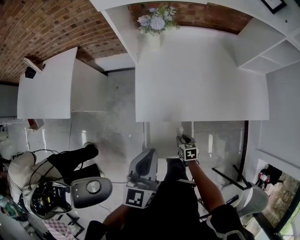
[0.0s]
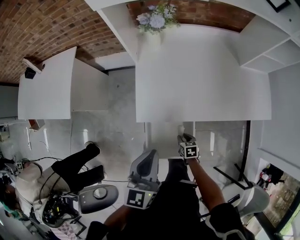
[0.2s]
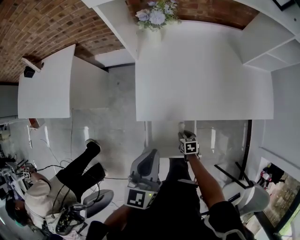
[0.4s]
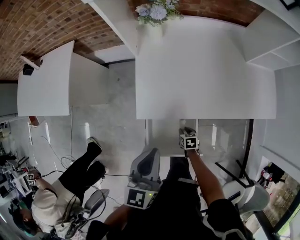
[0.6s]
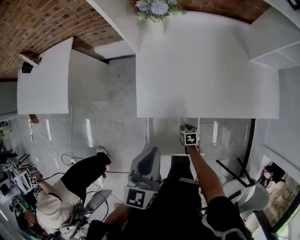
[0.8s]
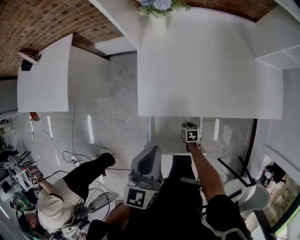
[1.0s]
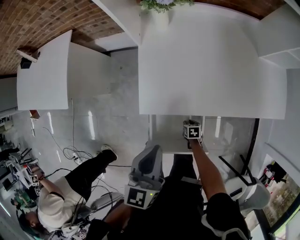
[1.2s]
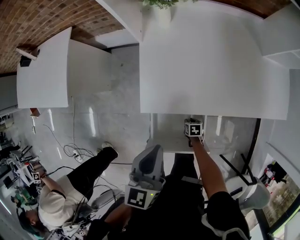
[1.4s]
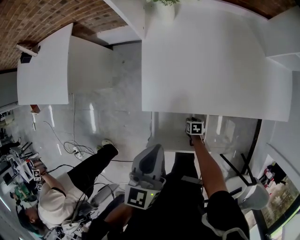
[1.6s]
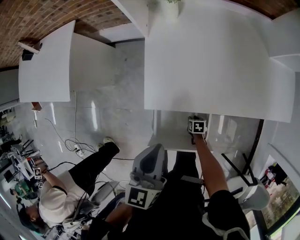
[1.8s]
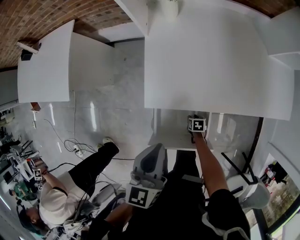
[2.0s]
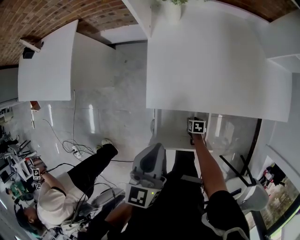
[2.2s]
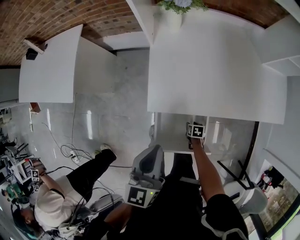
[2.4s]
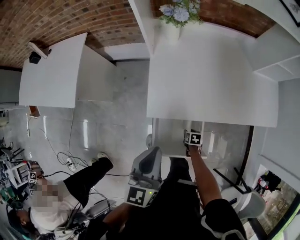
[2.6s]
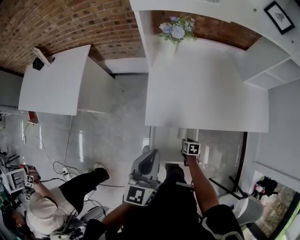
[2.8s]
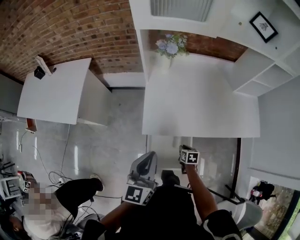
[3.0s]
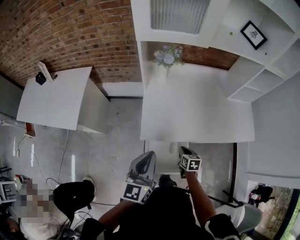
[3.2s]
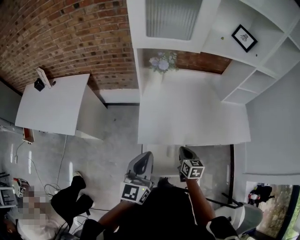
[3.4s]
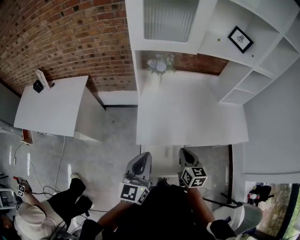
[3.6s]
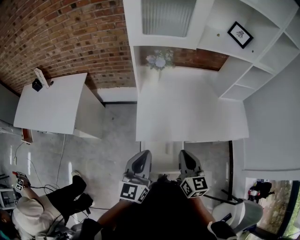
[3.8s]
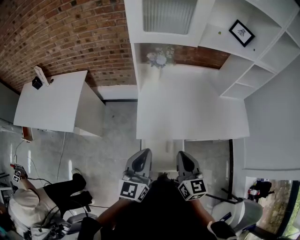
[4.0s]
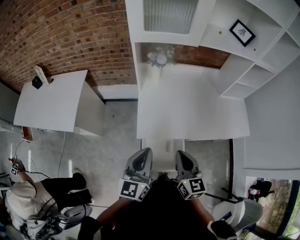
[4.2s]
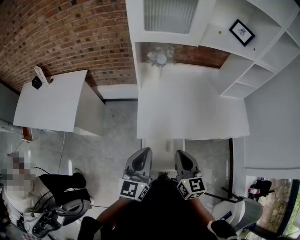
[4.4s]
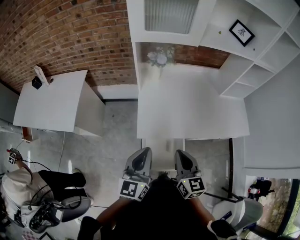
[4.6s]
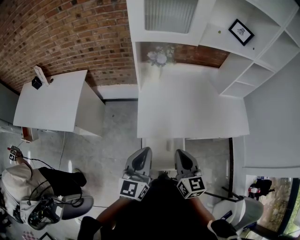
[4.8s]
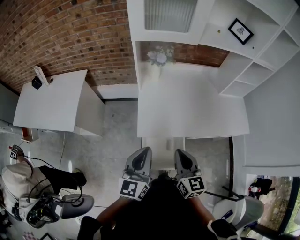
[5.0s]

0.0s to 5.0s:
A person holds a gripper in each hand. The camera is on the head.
0.0s to 1.6s: The left gripper travels downward by roughly 10 cm; the right gripper shifts some 20 cm downward.
1.6s to 3.4s: The left gripper is displaced upward, backward and to the left by approximately 15 cm. Meanwhile the right gripper heads upward, covering approximately 40 cm, angles its fingers upward, by roughly 40 degrees, and closes.
3.4s to 5.0s: The right gripper shifts roughly 20 cm upward and backward, and swivels some 20 degrees.

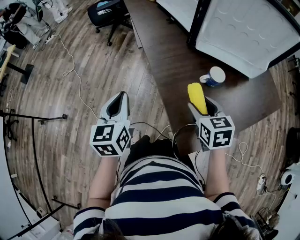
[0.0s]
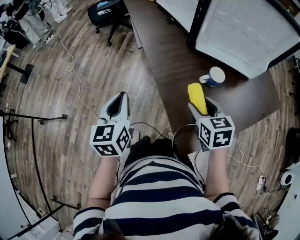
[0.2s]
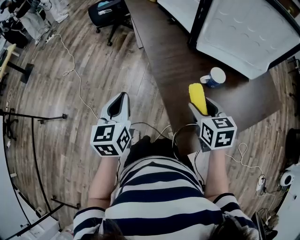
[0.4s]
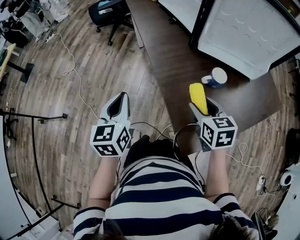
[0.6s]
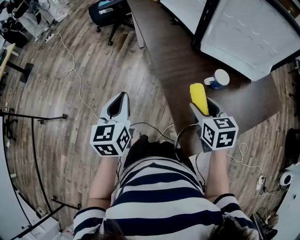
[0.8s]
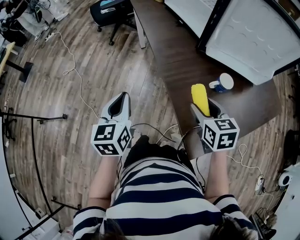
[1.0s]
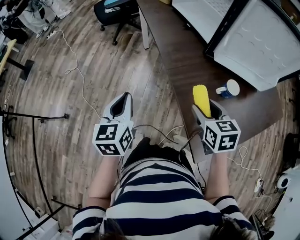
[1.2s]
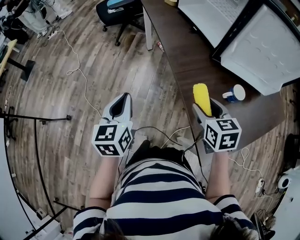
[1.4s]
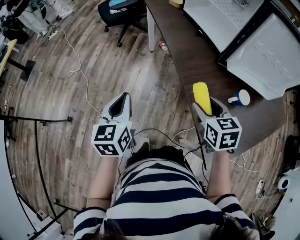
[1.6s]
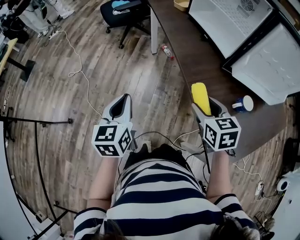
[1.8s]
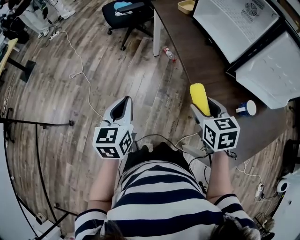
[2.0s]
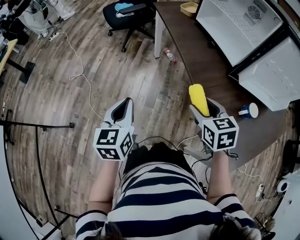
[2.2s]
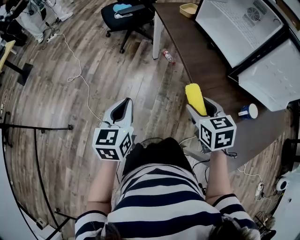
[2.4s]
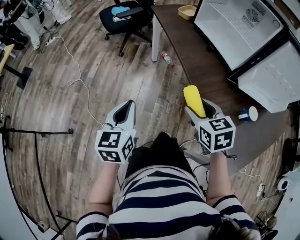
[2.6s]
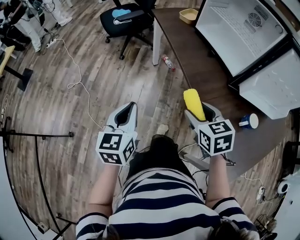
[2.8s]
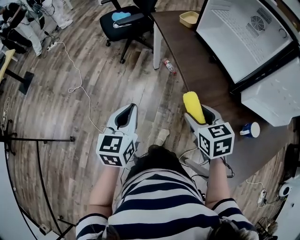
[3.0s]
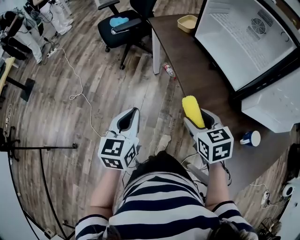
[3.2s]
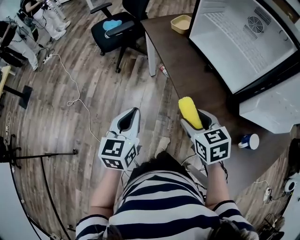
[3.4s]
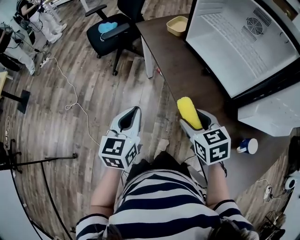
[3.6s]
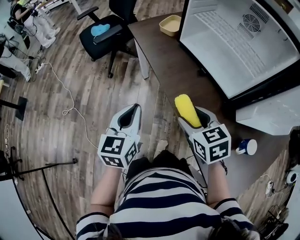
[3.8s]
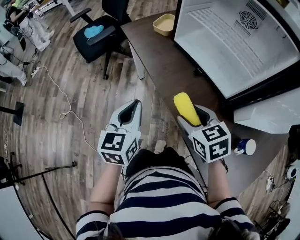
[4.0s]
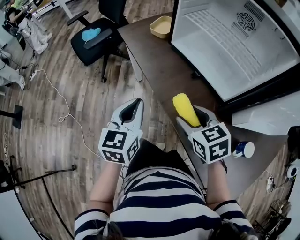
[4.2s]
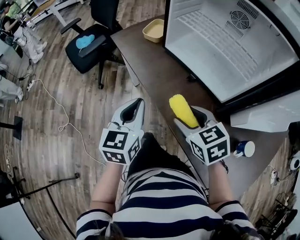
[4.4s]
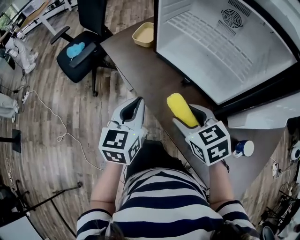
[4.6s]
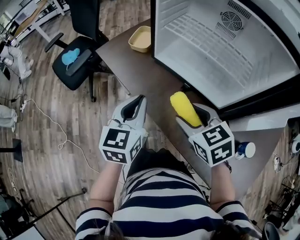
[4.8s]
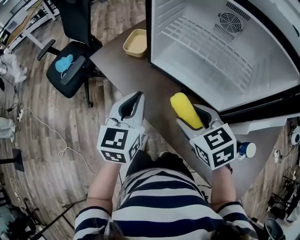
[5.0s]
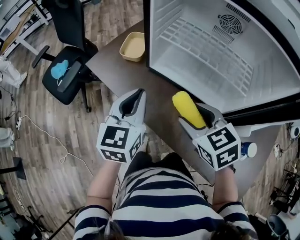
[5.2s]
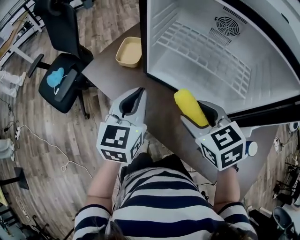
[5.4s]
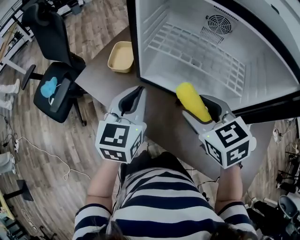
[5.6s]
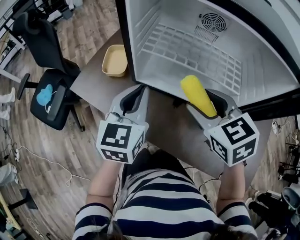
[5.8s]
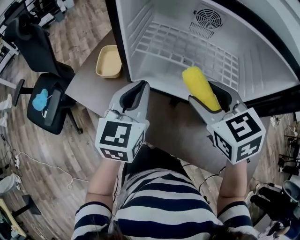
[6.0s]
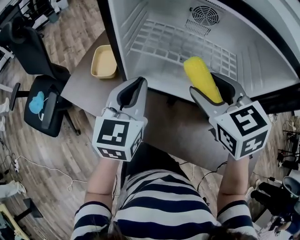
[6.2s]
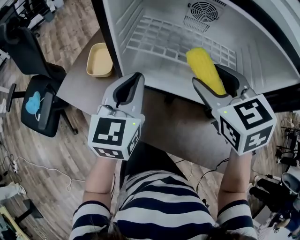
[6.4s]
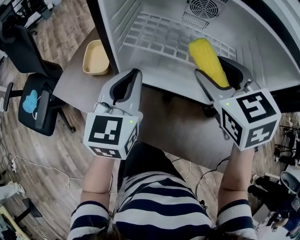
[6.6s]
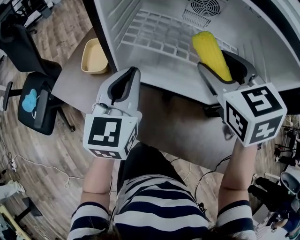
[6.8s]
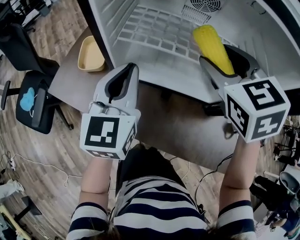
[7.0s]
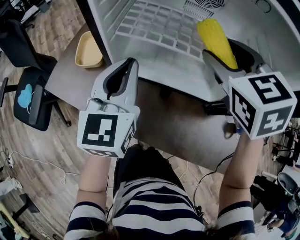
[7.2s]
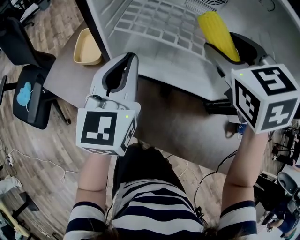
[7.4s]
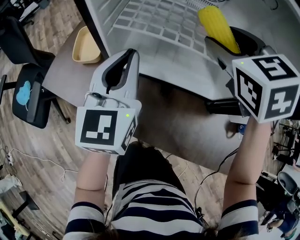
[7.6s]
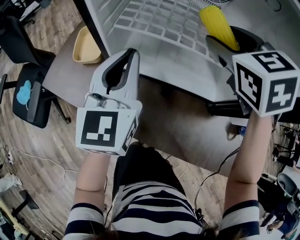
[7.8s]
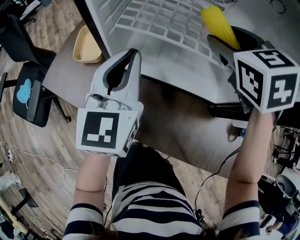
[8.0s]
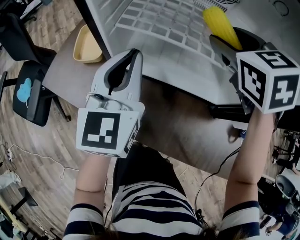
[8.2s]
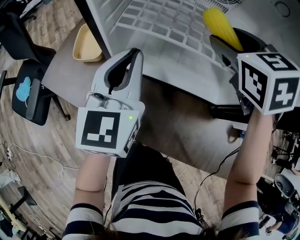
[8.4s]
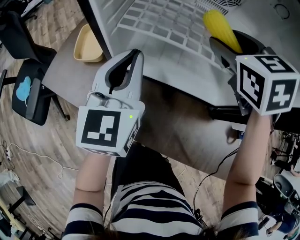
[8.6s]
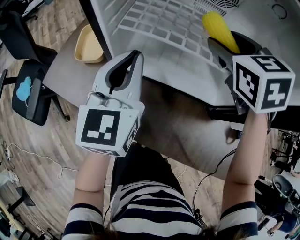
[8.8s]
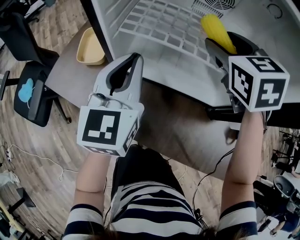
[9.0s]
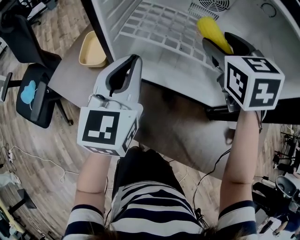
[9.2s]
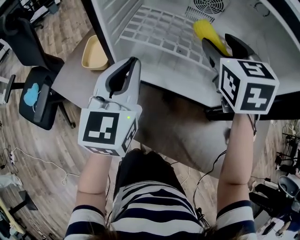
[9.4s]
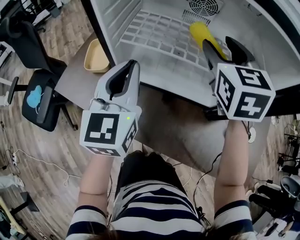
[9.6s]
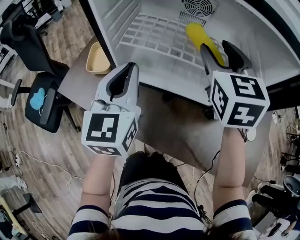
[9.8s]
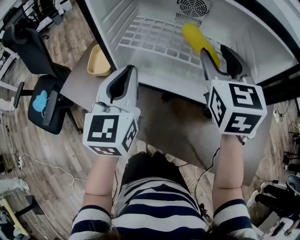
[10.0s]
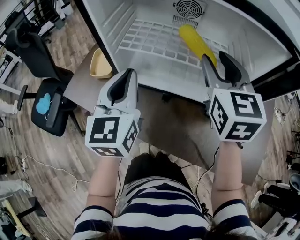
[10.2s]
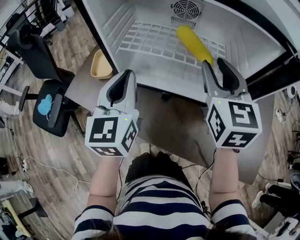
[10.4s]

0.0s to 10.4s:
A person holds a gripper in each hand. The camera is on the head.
0.0s to 1.4s: Both grippers travel together to the left and forward, approximately 15 cm.
1.4s to 3.0s: The two grippers go about 20 cm forward and to the left.
3.0s to 4.4s: The left gripper goes roughly 30 cm forward and to the right, while the right gripper heads forward, covering about 20 cm.
4.4s to 6.0s: The right gripper shifts by some 25 cm, and rotates roughly 30 degrees, while the left gripper shifts by approximately 25 cm, and changes its angle by about 30 degrees.
6.0s to 7.4s: The right gripper travels forward by roughly 10 cm.
7.4s to 9.0s: The right gripper shifts by some 5 cm.
9.0s to 10.4s: The left gripper heads backward and upward, covering roughly 10 cm. Meanwhile the right gripper is displaced backward and upward by about 15 cm, swivels some 30 degrees, and closes up.

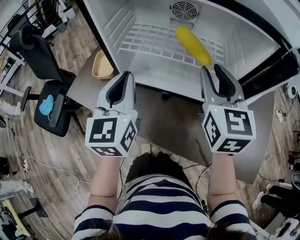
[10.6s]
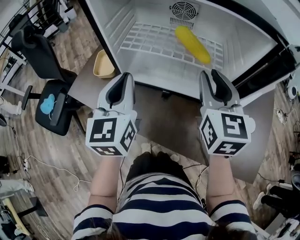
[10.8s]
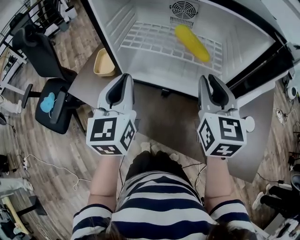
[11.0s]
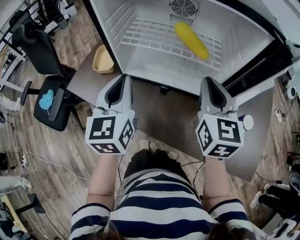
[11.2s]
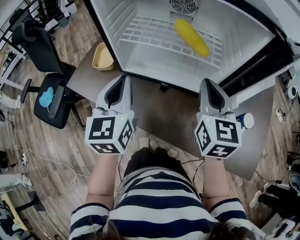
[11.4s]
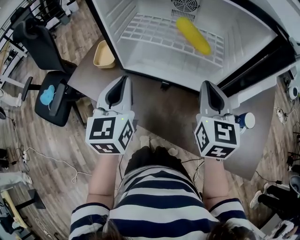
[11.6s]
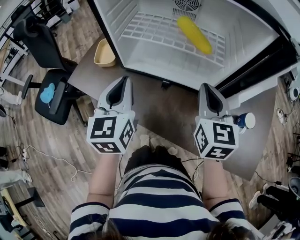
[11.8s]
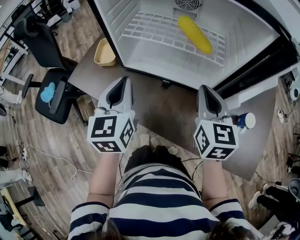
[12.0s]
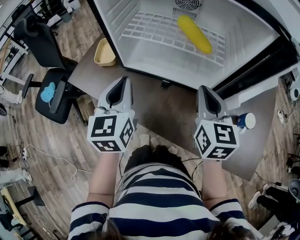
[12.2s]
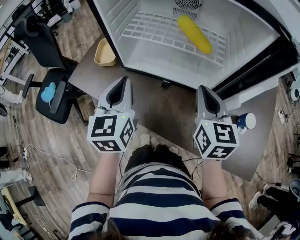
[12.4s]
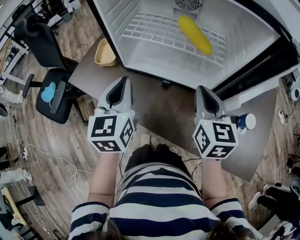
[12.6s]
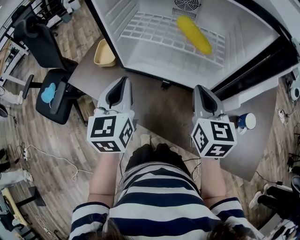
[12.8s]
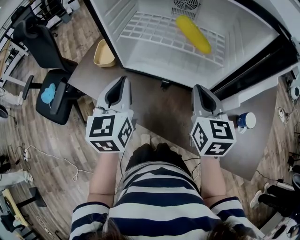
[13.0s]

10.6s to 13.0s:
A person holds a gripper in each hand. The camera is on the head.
10.6s to 11.8s: The right gripper shifts roughly 10 cm downward and backward, and closes up. Meanwhile the left gripper shifts by approximately 5 cm.
11.8s to 13.0s: The grippers stay close to where they were, moving slightly.

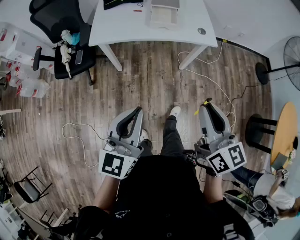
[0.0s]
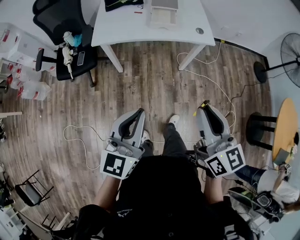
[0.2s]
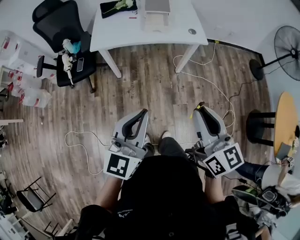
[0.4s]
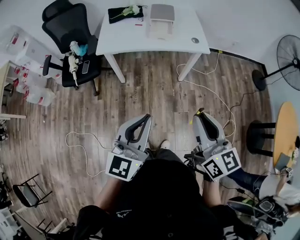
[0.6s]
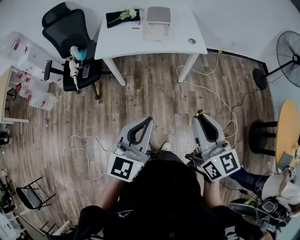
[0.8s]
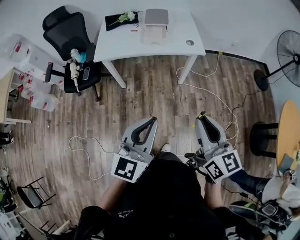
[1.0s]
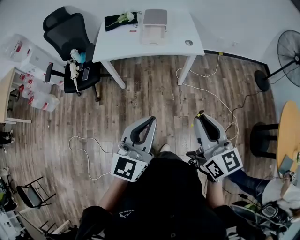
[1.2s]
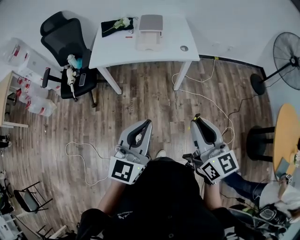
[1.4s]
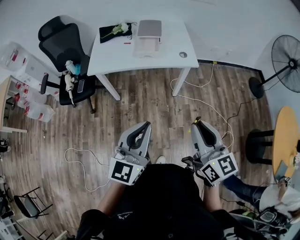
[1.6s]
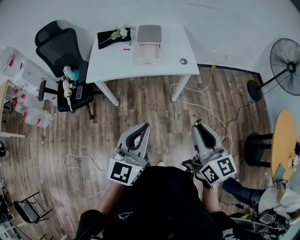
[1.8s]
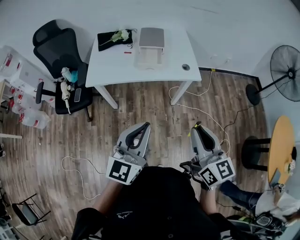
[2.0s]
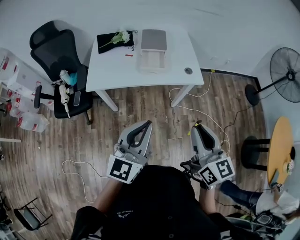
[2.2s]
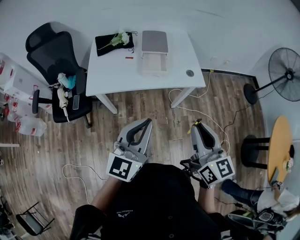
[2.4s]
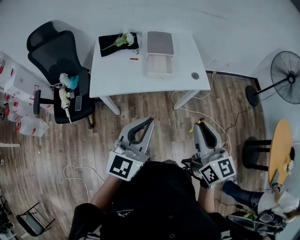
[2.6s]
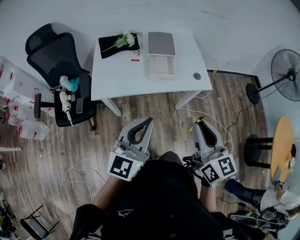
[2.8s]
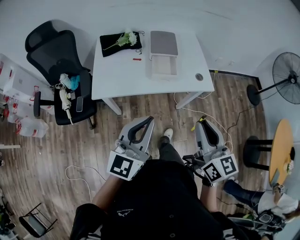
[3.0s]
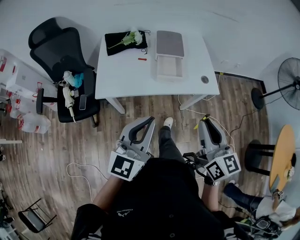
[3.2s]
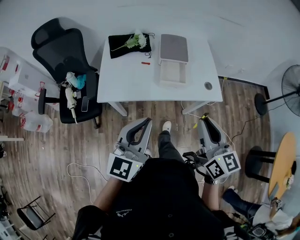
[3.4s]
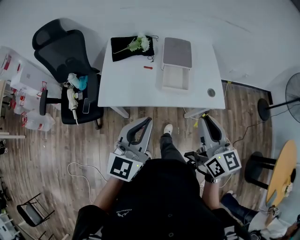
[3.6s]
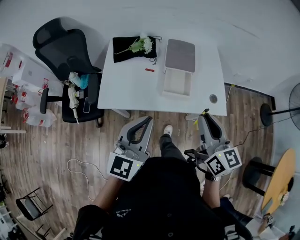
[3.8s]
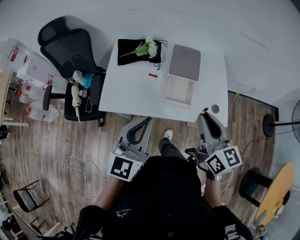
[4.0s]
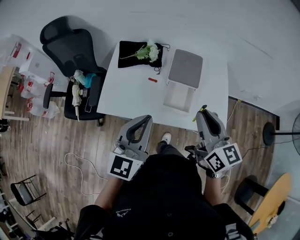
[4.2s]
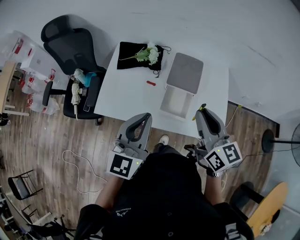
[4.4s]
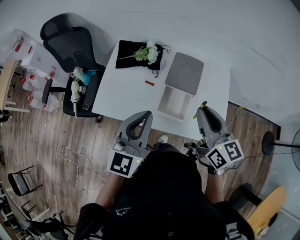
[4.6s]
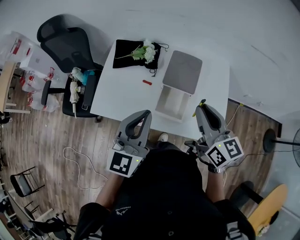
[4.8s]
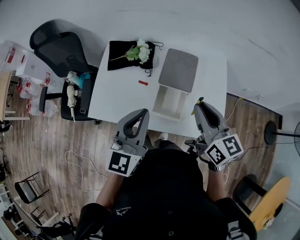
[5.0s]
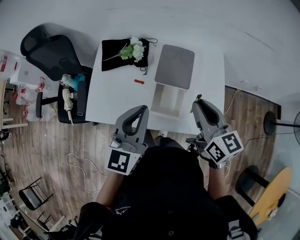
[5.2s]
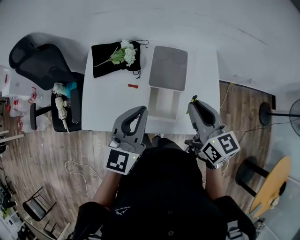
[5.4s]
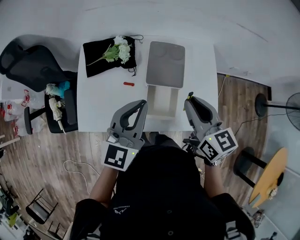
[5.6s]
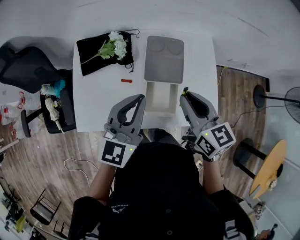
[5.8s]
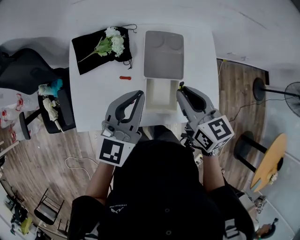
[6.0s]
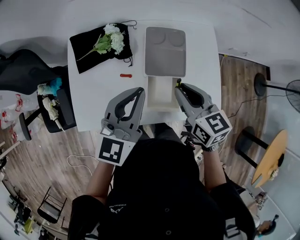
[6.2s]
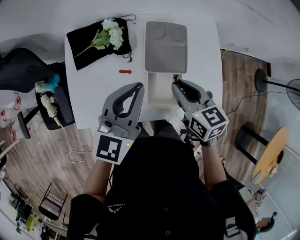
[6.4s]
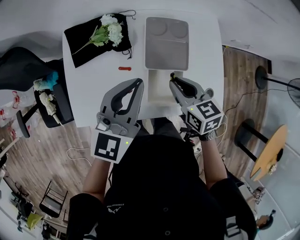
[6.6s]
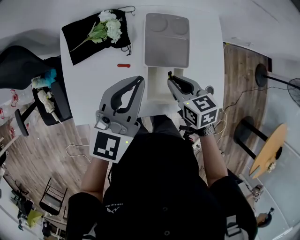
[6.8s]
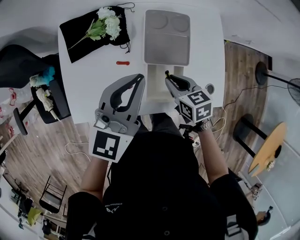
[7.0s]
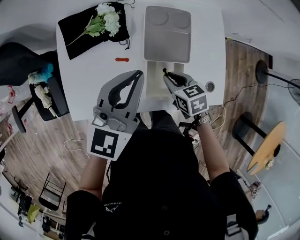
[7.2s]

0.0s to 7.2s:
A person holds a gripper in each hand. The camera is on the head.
0.0s to 1.4s: The right gripper is displaced backward and to the right by some 15 cm. Meanwhile the left gripper heads to the right and backward, covering roughly 15 cm.
1.4s to 2.8s: The two grippers go some 30 cm forward and to the left.
2.8s to 4.4s: Both grippers move forward, some 30 cm. The right gripper swivels approximately 20 degrees, while the left gripper changes its angle by roughly 20 degrees.
4.4s to 5.8s: The left gripper is displaced forward by approximately 15 cm. The right gripper goes roughly 15 cm forward and downward.
5.8s to 7.2s: The right gripper shifts roughly 20 cm downward, and swivels some 30 degrees. Meanwhile the left gripper ends up approximately 5 cm from where it was.
